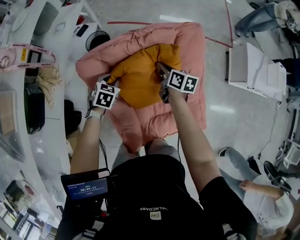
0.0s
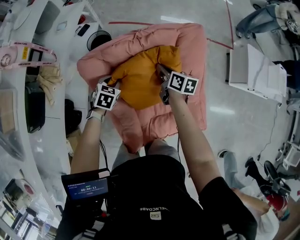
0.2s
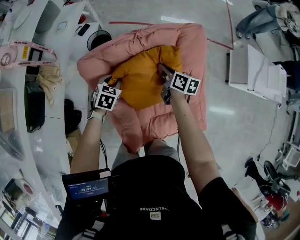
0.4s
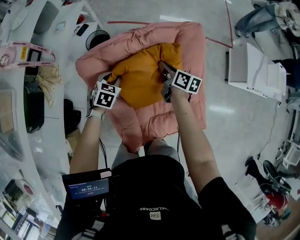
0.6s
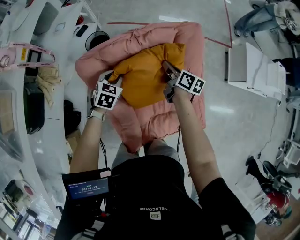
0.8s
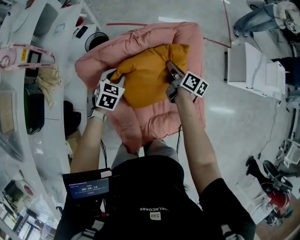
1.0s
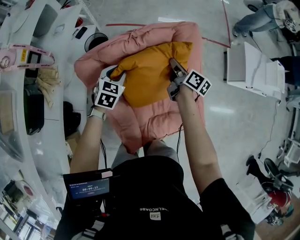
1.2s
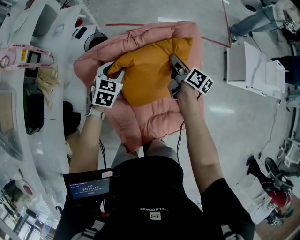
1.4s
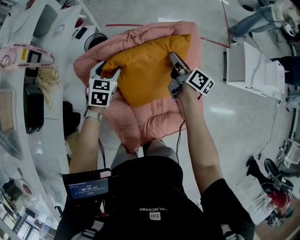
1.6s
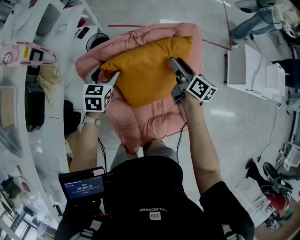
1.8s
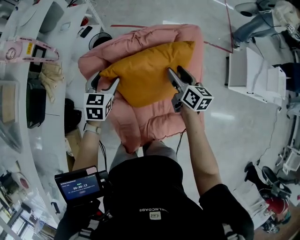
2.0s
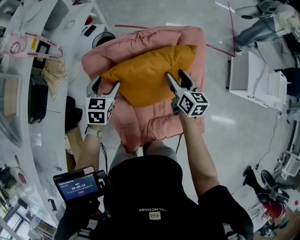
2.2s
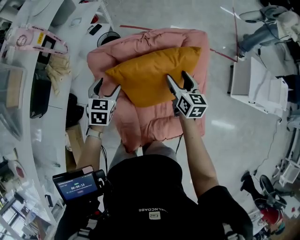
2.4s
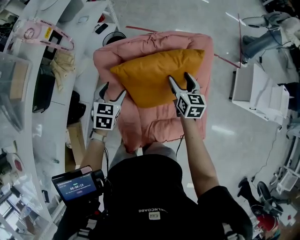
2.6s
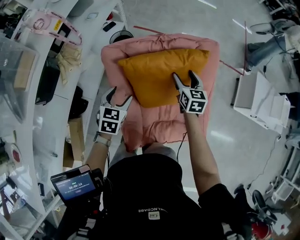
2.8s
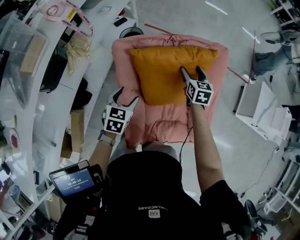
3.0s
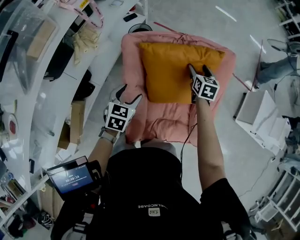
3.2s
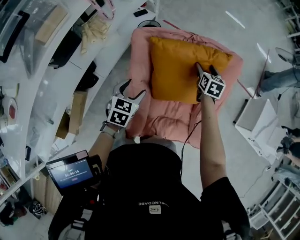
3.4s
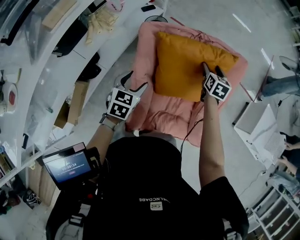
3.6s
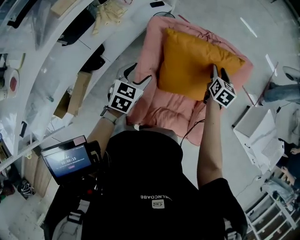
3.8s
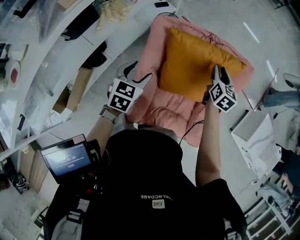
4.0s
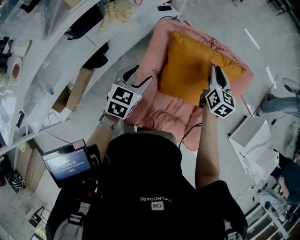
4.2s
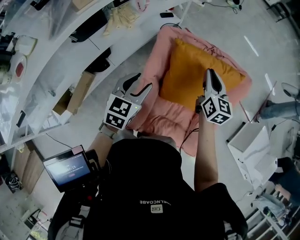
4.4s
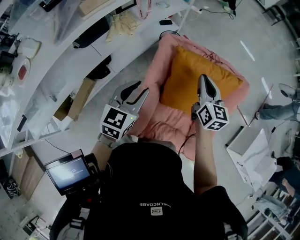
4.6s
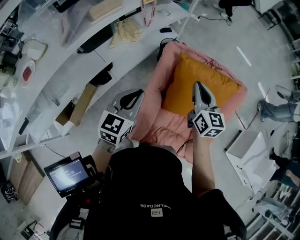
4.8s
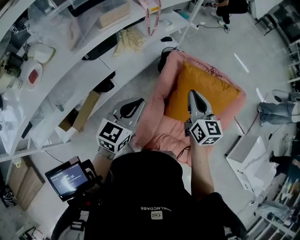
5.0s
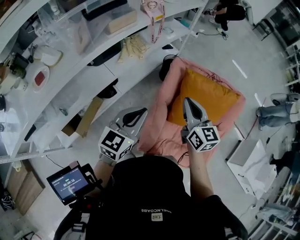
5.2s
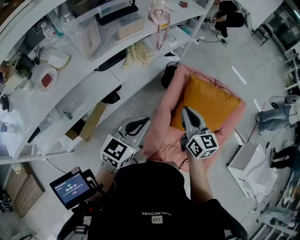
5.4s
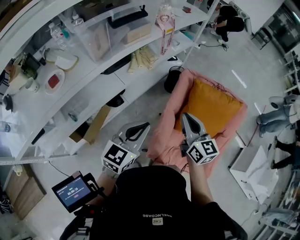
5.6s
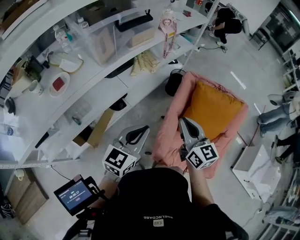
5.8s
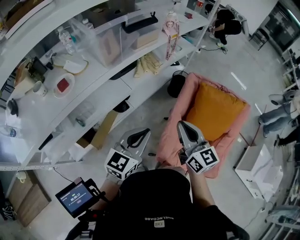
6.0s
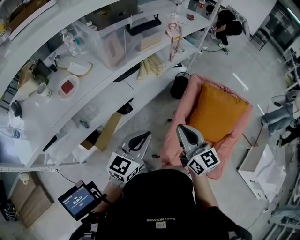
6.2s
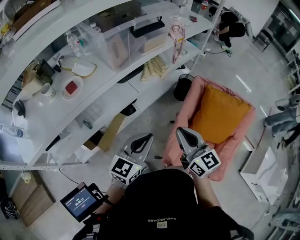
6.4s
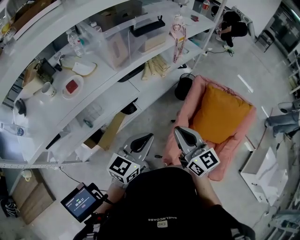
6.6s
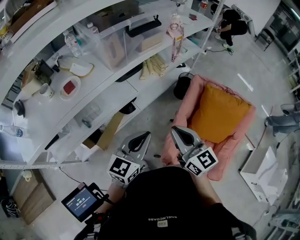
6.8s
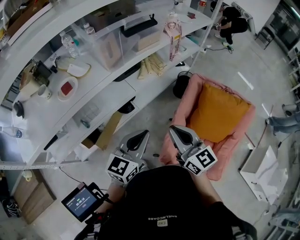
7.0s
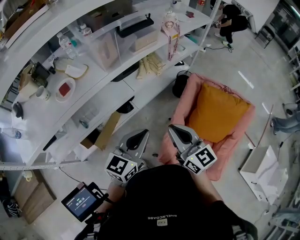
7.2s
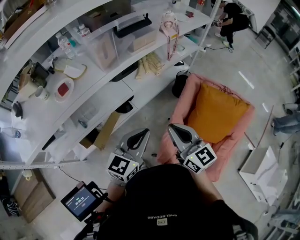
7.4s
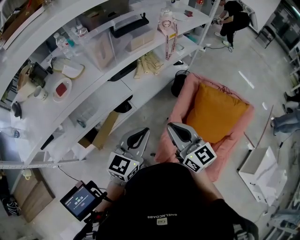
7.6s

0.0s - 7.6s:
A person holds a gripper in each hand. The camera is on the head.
0.0s - 1.6s: The left gripper shifts some 10 cm upward, and opens its fingers, while the right gripper shifts about 10 cm upward and to the right, and rotates roughly 20 degrees.
1.6s - 3.0s: The right gripper heads to the left, covering approximately 5 cm, rotates around the line of its fingers by roughly 50 degrees, counterclockwise from behind, and opens up. The left gripper heads backward, covering roughly 15 cm.
3.0s - 4.6s: The right gripper is displaced upward, to the left and backward by about 25 cm, changes its angle by about 30 degrees, and closes its fingers; the left gripper travels upward, backward and to the left by some 20 cm, rotates approximately 30 degrees, and closes up.
4.6s - 6.0s: The right gripper is displaced to the left and backward by about 35 cm, and changes its angle by approximately 20 degrees, while the left gripper travels to the left, backward and upward by roughly 25 cm.
6.0s - 7.6s: There are only small adjustments of the grippers.

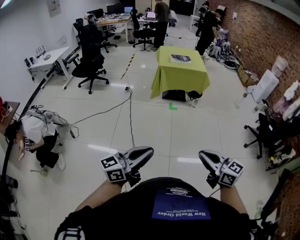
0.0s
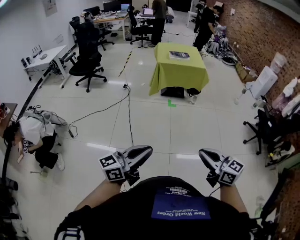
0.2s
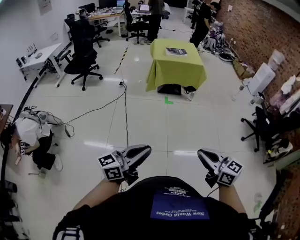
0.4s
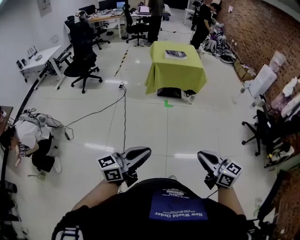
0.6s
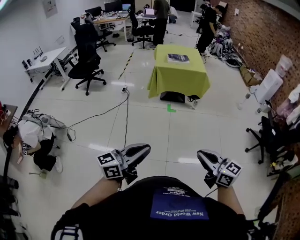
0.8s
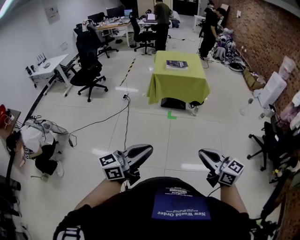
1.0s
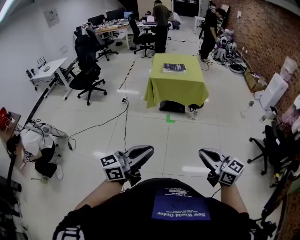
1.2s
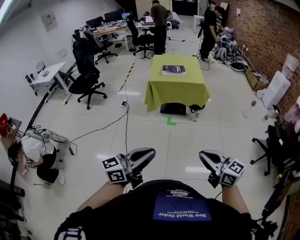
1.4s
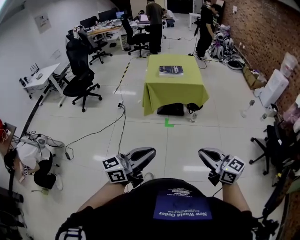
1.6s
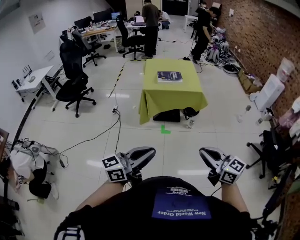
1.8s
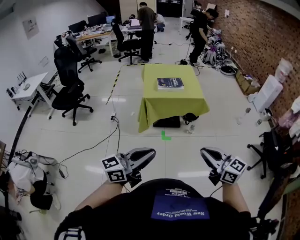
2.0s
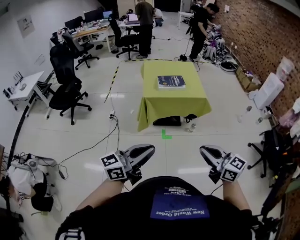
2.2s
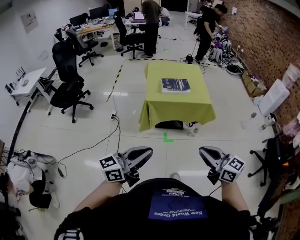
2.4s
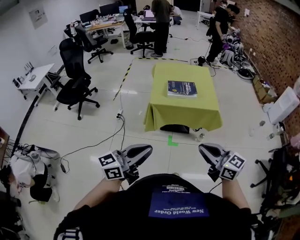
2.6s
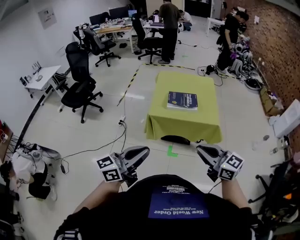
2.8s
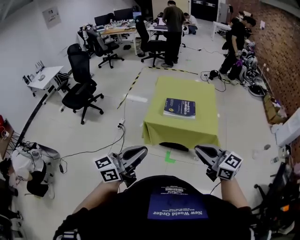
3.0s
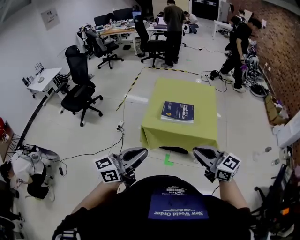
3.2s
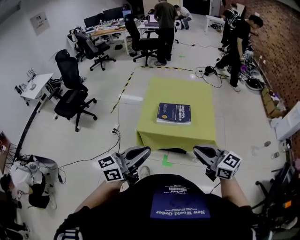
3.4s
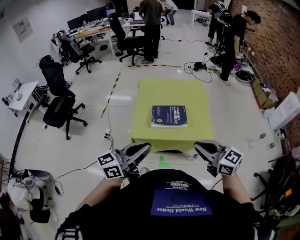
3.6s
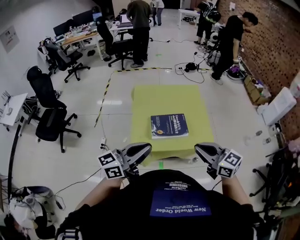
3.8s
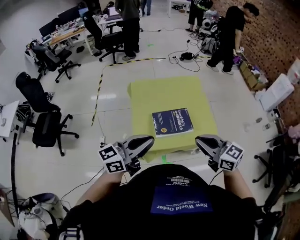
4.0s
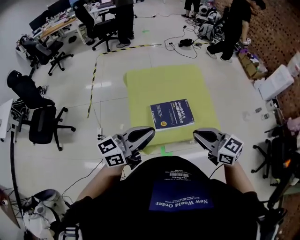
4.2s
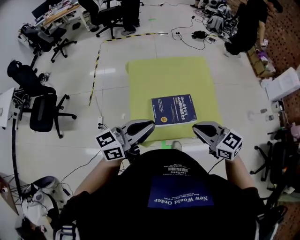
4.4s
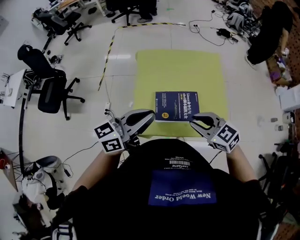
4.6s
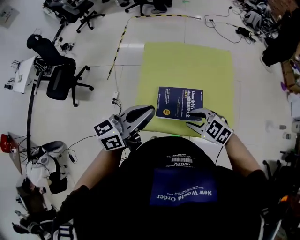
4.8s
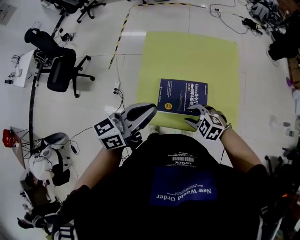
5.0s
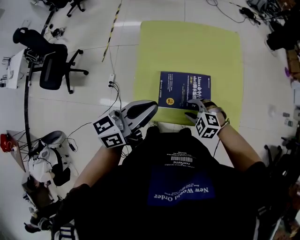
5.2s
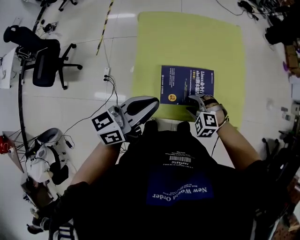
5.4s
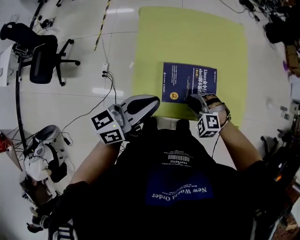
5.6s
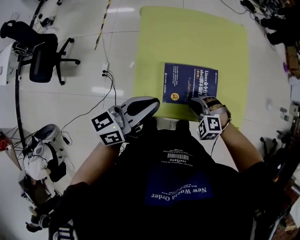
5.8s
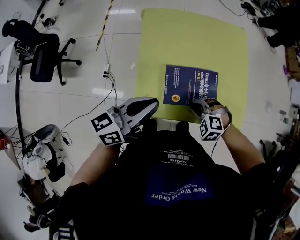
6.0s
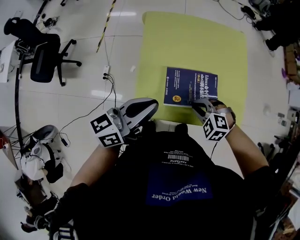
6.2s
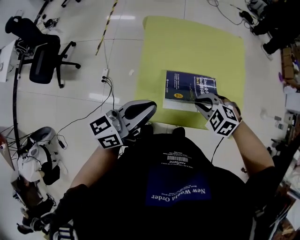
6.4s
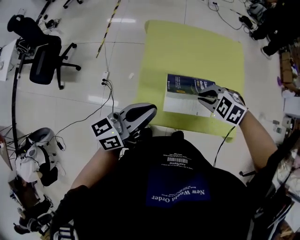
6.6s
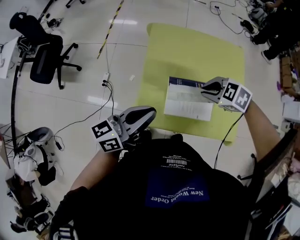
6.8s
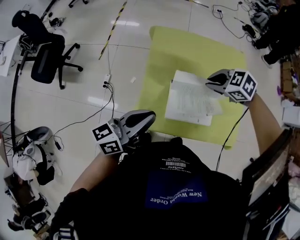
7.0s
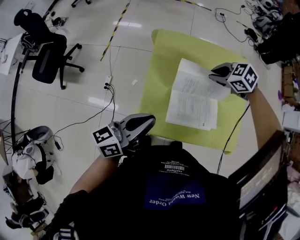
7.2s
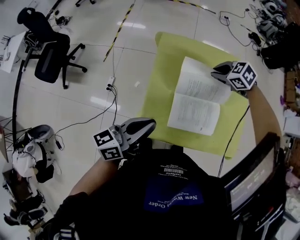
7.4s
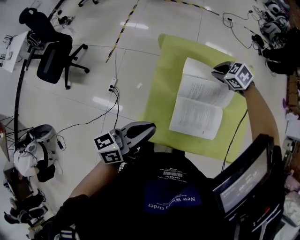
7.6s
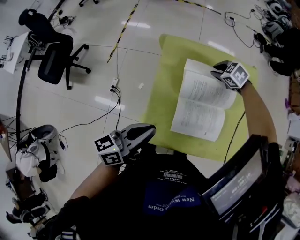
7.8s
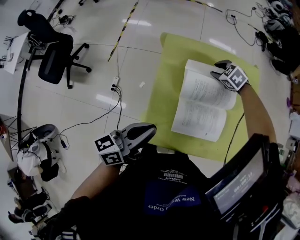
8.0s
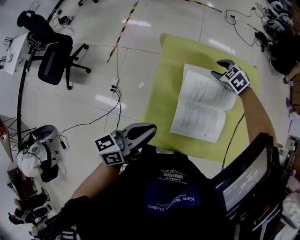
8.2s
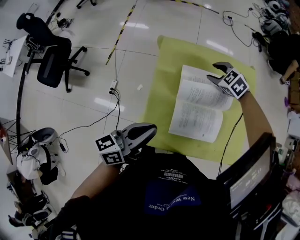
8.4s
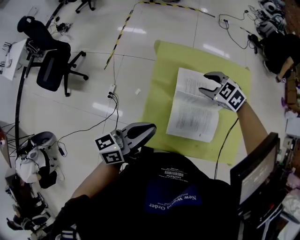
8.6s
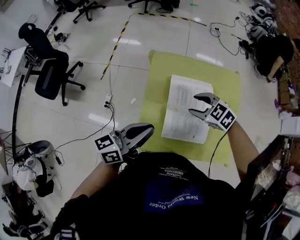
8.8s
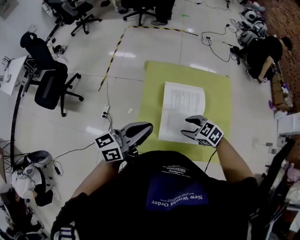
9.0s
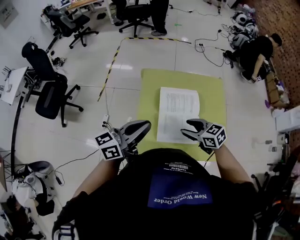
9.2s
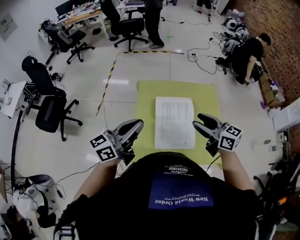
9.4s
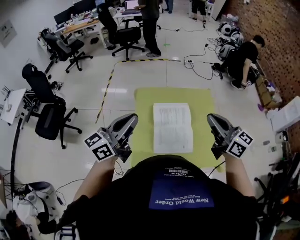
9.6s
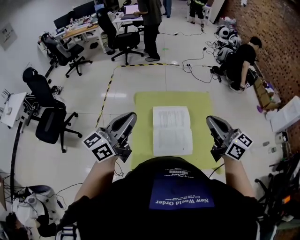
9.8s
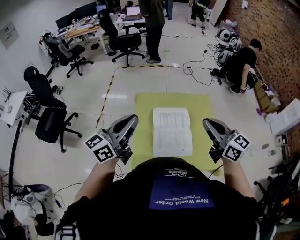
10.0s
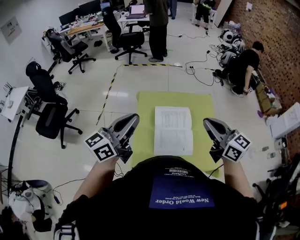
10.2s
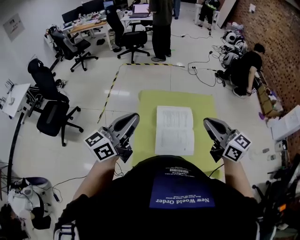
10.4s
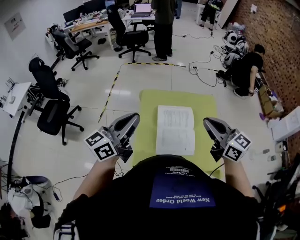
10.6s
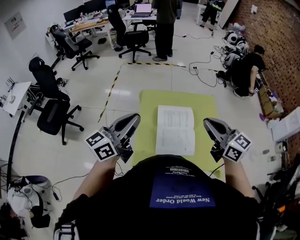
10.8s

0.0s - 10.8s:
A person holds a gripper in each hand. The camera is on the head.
0.0s - 1.6s: The two grippers go some 40 cm forward and to the right.
1.6s - 3.0s: The pair of grippers is taken forward, about 50 cm.
3.0s - 4.6s: Both grippers travel together forward, about 40 cm. The right gripper turns by roughly 20 degrees.
4.6s - 6.2s: The left gripper goes some 10 cm downward and to the left. The right gripper is displaced downward by some 20 cm, tilts its fingers some 30 degrees downward, and opens, then closes again.
6.2s - 7.8s: The left gripper moves approximately 5 cm, while the right gripper goes upward and returns, some 10 cm each way, and turns by about 20 degrees.
7.8s - 9.2s: The right gripper goes about 25 cm backward, tips its fingers upward by about 30 degrees, and opens its fingers. Meanwhile the left gripper goes about 10 cm upward.
9.2s - 10.8s: The right gripper travels upward by approximately 25 cm, changes its angle by roughly 40 degrees, and closes up, while the left gripper goes approximately 10 cm upward.

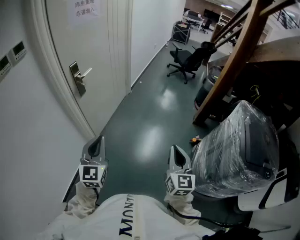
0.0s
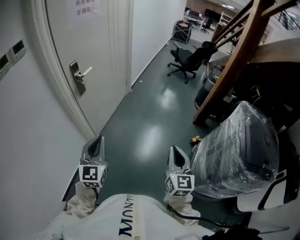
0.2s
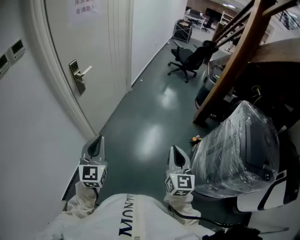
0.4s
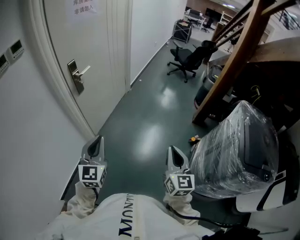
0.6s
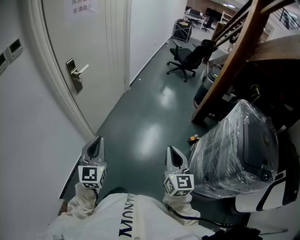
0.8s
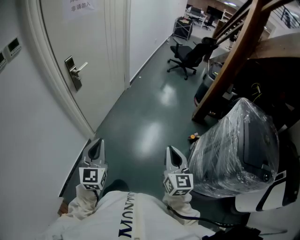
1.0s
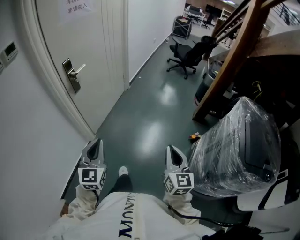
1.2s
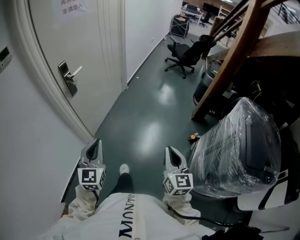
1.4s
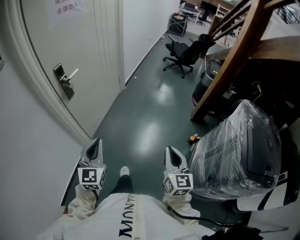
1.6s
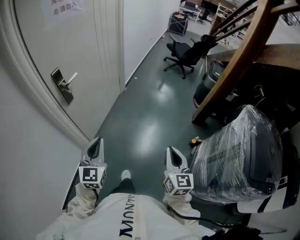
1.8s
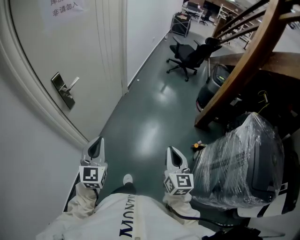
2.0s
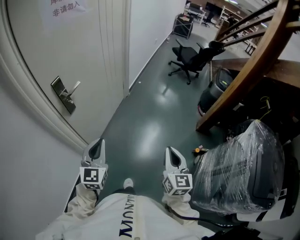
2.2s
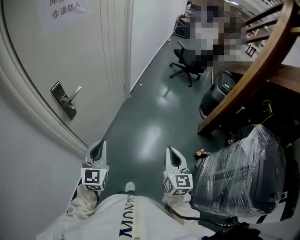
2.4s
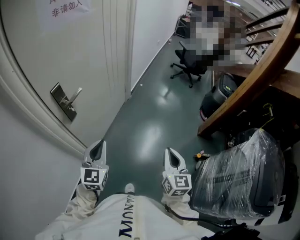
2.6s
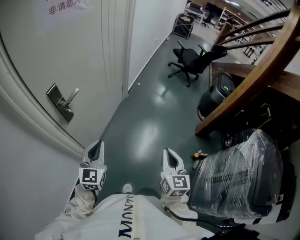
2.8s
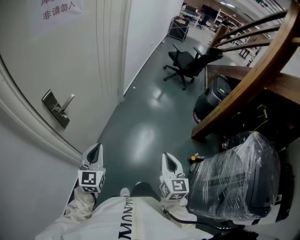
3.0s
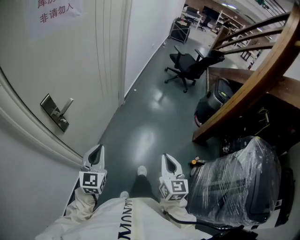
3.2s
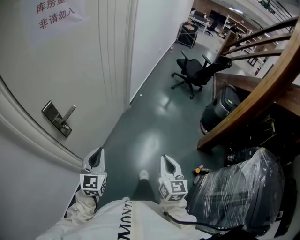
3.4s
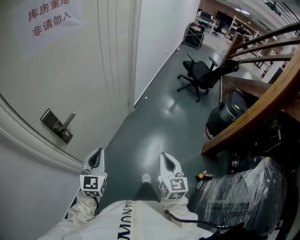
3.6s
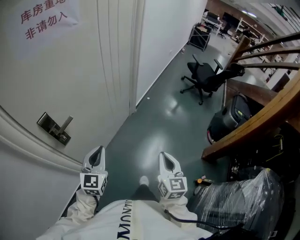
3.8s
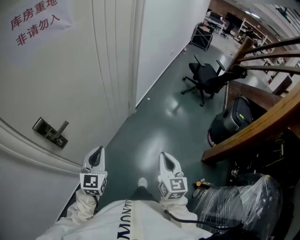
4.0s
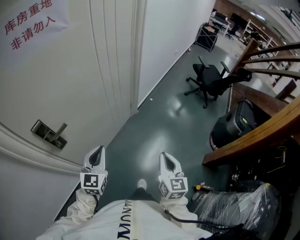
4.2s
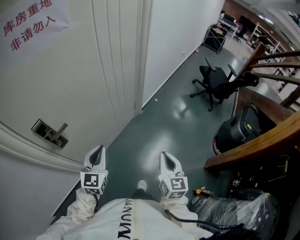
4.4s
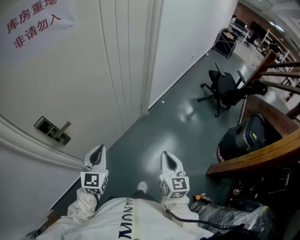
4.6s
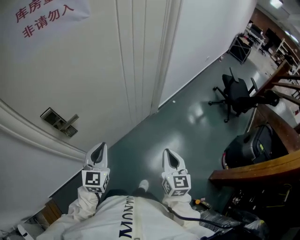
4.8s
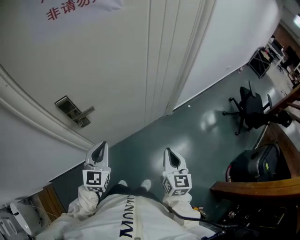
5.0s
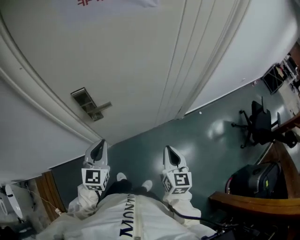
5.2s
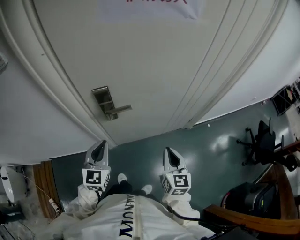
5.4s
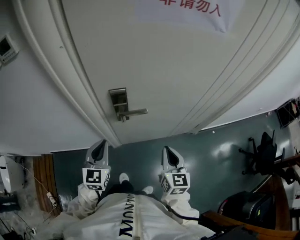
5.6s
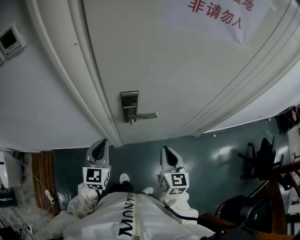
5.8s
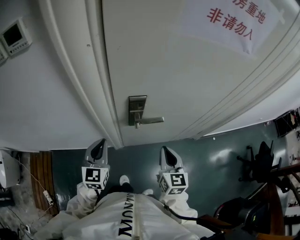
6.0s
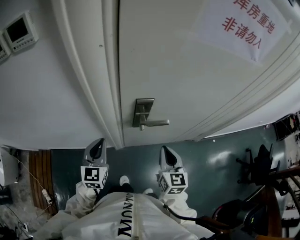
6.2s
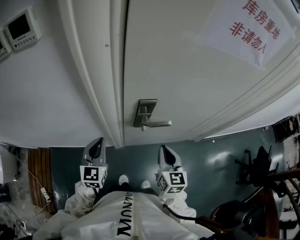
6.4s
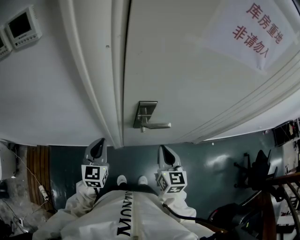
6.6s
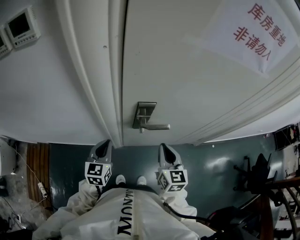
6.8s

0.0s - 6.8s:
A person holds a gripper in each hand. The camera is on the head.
0.0s - 1.4s: The right gripper ends up about 5 cm from where it was. The left gripper changes place by roughly 5 cm.
1.4s - 2.8s: The grippers both shift forward by some 25 cm.
2.8s - 4.0s: Both grippers move forward, roughly 20 cm.
4.0s - 5.4s: The right gripper shifts by about 25 cm, and swivels some 40 degrees; the left gripper shifts by some 15 cm, and turns by roughly 40 degrees.
5.4s - 6.8s: The left gripper travels to the left, forward and downward by about 15 cm. The right gripper goes roughly 20 cm to the left and forward.
